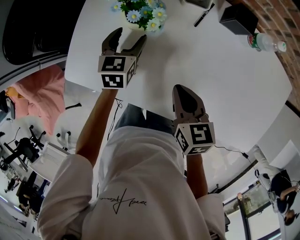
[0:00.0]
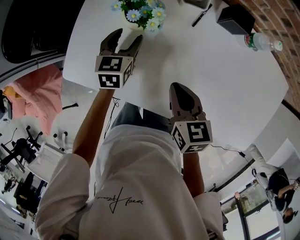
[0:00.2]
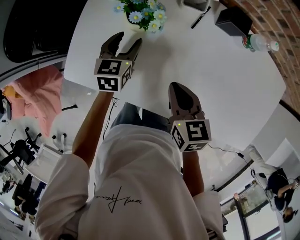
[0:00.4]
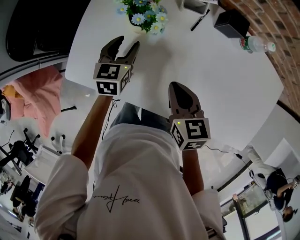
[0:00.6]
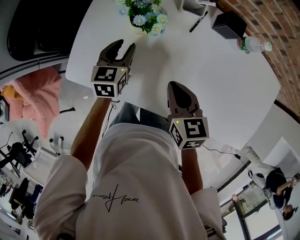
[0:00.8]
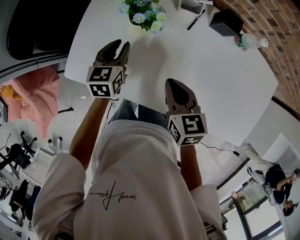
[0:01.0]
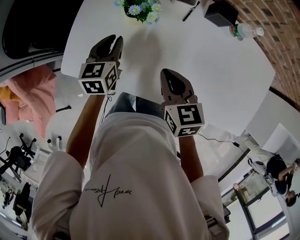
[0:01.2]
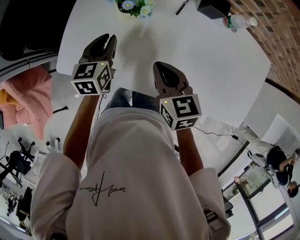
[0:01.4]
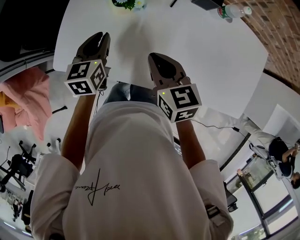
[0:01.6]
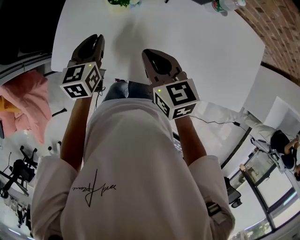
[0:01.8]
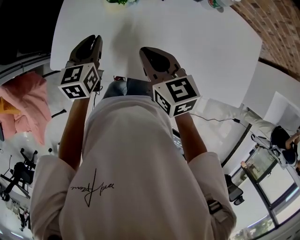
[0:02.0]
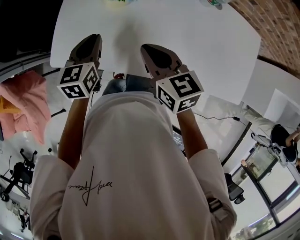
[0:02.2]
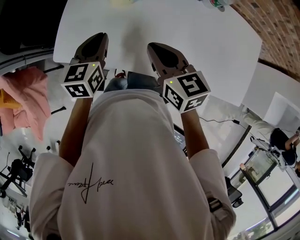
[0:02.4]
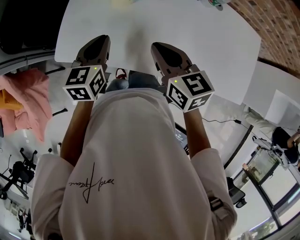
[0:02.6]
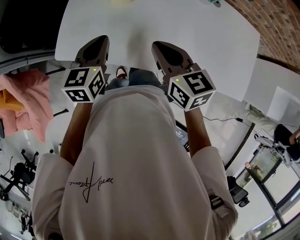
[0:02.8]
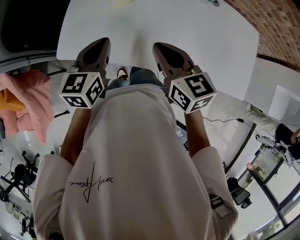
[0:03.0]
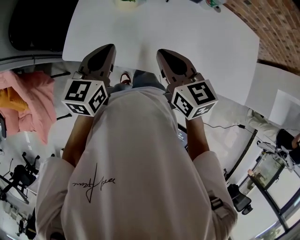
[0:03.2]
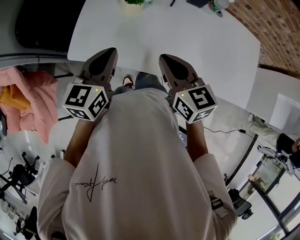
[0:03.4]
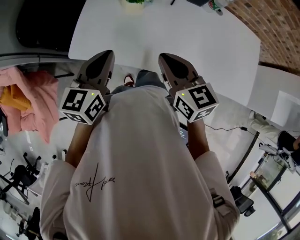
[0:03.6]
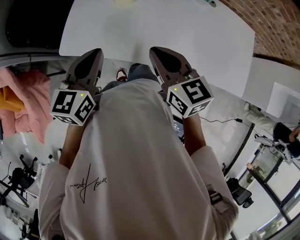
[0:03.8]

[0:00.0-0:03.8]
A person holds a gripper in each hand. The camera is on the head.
0:00.0 to 0:01.2: The left gripper shifts approximately 5 cm upward, and closes. The right gripper moves approximately 5 cm.
0:01.2 to 0:02.6: The right gripper heads upward and backward, covering about 10 cm. The left gripper is displaced backward and upward by about 15 cm.
0:02.6 to 0:03.8: The right gripper moves backward, some 5 cm. The left gripper heads backward and upward, covering roughly 10 cm.

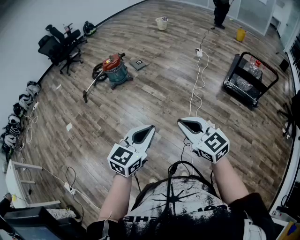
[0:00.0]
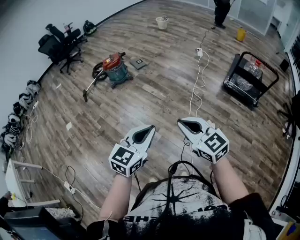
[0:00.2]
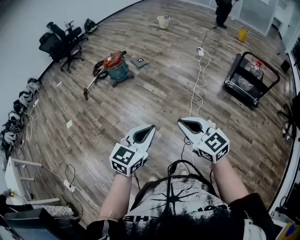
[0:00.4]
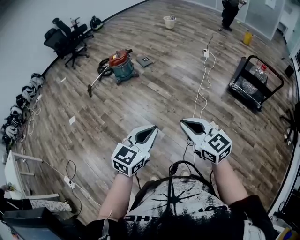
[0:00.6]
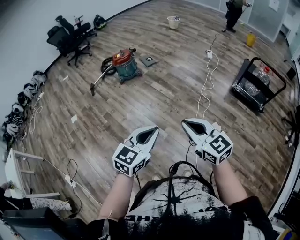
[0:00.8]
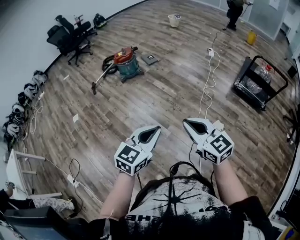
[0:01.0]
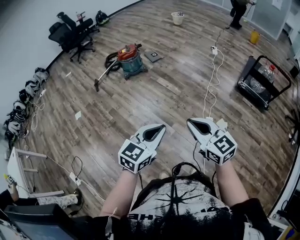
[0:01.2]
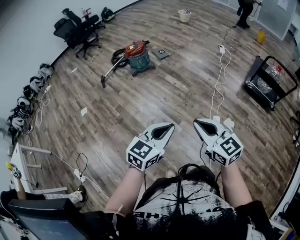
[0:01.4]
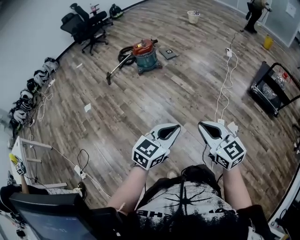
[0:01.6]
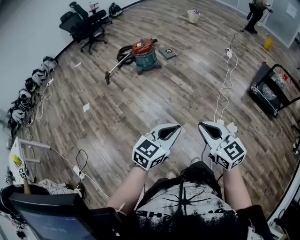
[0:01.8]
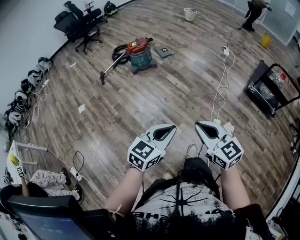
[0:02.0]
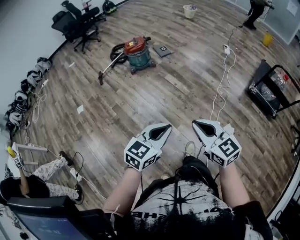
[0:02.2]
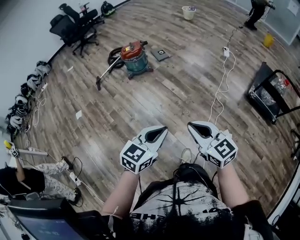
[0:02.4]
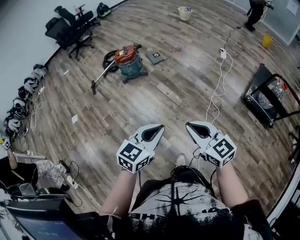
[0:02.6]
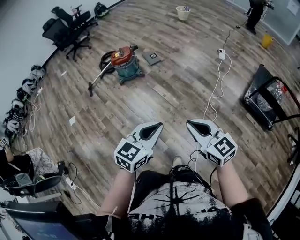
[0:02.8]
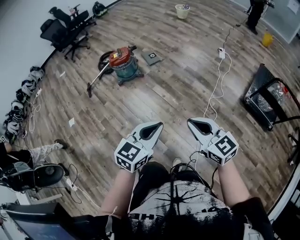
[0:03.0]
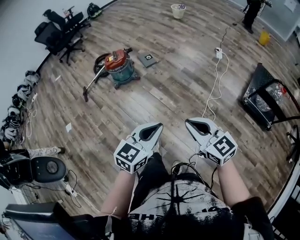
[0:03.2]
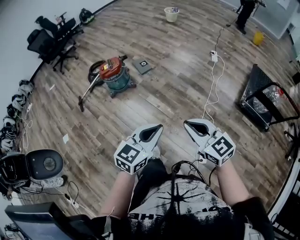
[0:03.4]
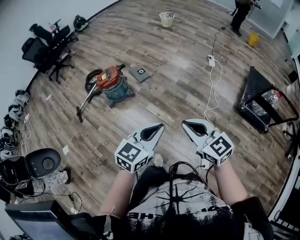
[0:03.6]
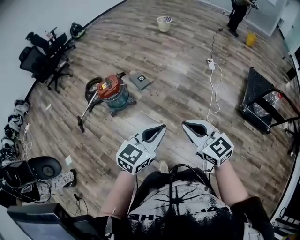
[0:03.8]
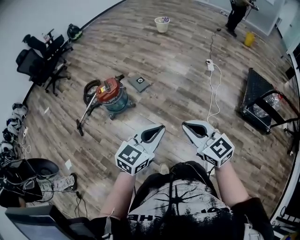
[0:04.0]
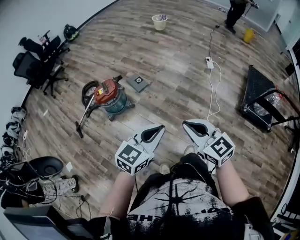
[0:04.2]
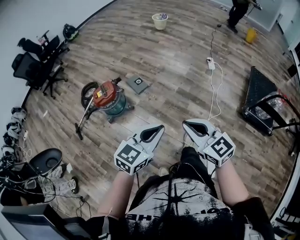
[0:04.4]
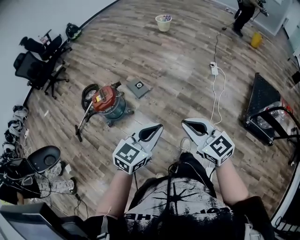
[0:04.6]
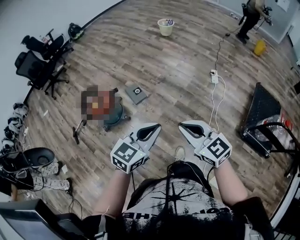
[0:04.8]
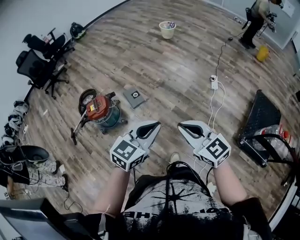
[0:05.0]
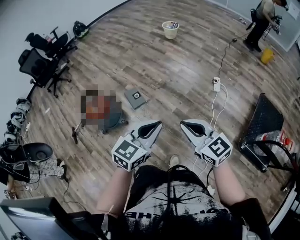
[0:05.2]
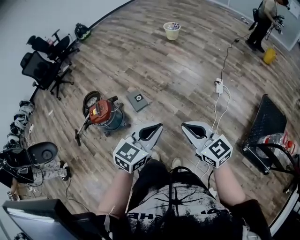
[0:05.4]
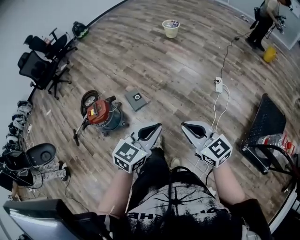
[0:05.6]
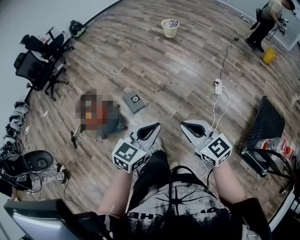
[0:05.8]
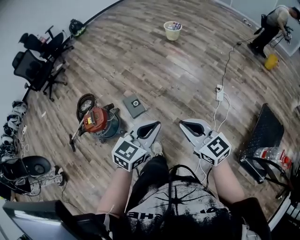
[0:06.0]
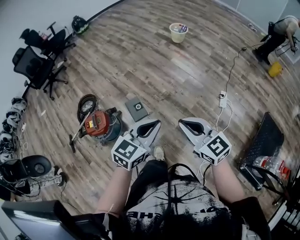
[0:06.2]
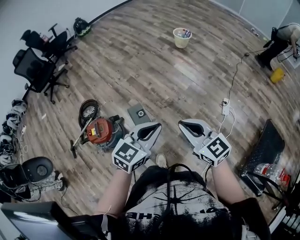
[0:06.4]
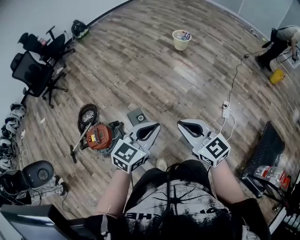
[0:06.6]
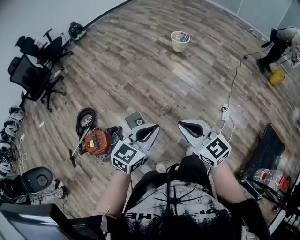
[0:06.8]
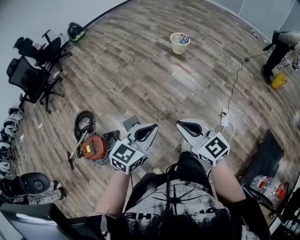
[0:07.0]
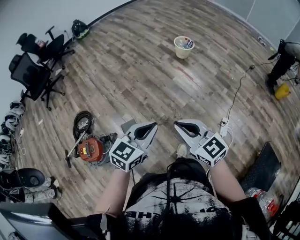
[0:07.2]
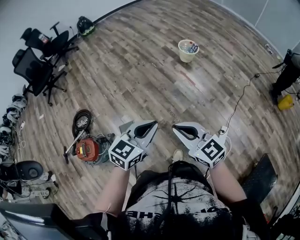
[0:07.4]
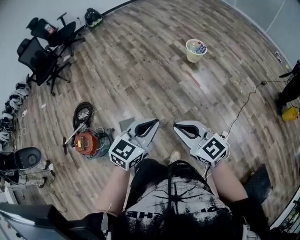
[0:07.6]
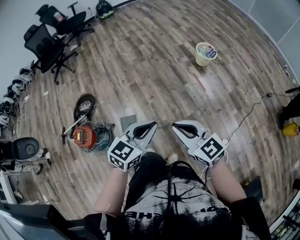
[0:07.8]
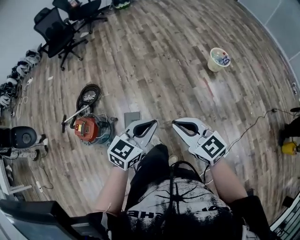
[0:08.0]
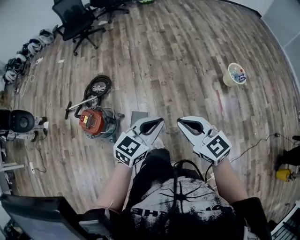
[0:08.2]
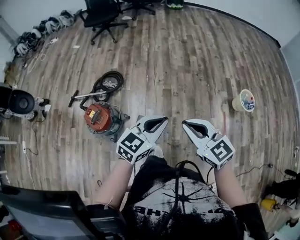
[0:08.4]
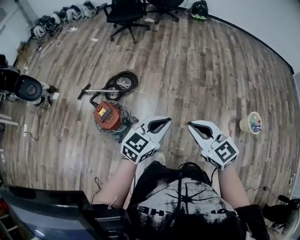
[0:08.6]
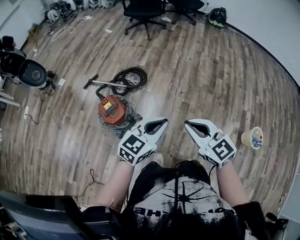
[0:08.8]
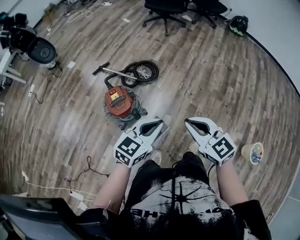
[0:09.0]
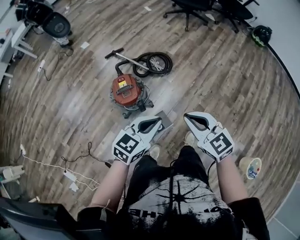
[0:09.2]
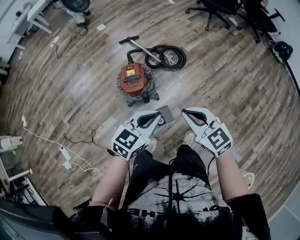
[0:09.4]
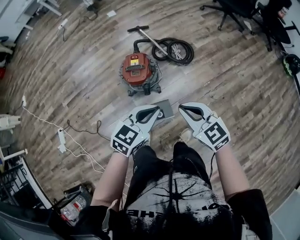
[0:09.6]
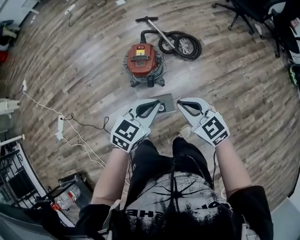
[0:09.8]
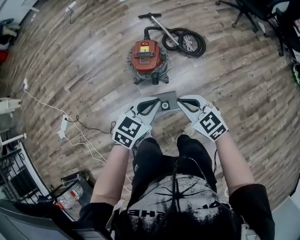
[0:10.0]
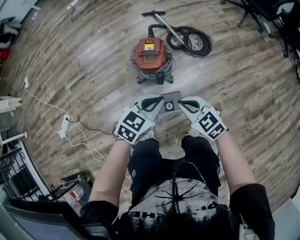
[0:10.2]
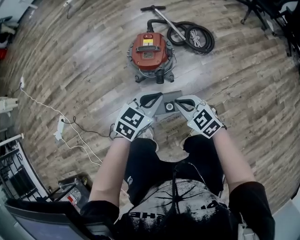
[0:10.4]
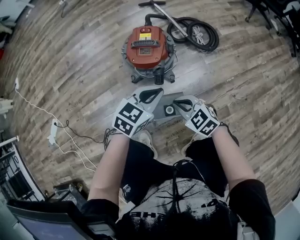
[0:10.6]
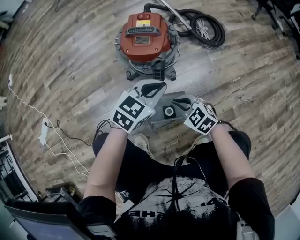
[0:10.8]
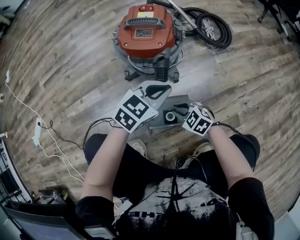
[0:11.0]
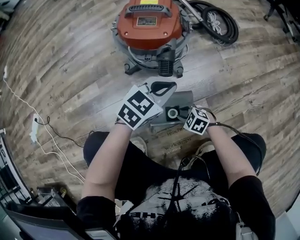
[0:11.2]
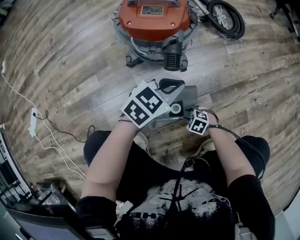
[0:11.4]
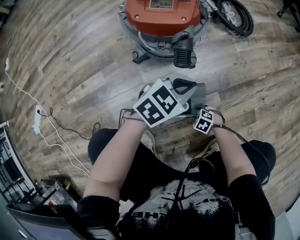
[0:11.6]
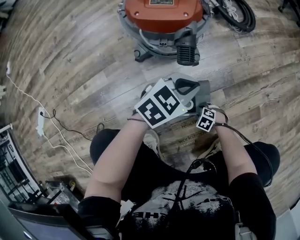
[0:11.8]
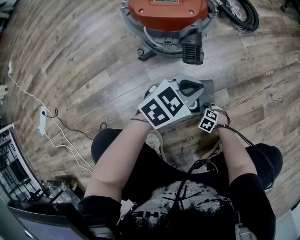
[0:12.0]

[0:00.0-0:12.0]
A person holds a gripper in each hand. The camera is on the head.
0:00.0 to 0:01.6: The grippers both shift to the left by some 15 cm.
0:01.6 to 0:03.0: Both grippers move forward and to the right, roughly 35 cm.
0:03.0 to 0:04.4: The grippers both shift forward by some 35 cm.
0:04.4 to 0:06.0: The pair of grippers is taken forward, some 40 cm.
0:06.0 to 0:07.6: Both grippers are carried forward, about 50 cm.
0:07.6 to 0:09.0: Both grippers are carried roughly 40 cm. The right gripper swivels approximately 60 degrees. Meanwhile the left gripper changes its angle by some 60 degrees.
0:09.0 to 0:10.4: The two grippers go about 30 cm downward. The left gripper rotates roughly 40 degrees. Meanwhile the right gripper turns by about 50 degrees.
0:10.4 to 0:12.0: The right gripper travels downward by approximately 70 cm, points its fingers approximately 40 degrees further downward, and opens its fingers. The left gripper heads downward, covering approximately 40 cm.

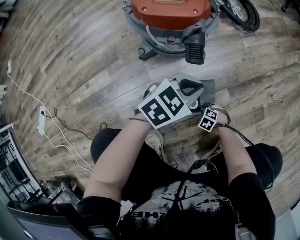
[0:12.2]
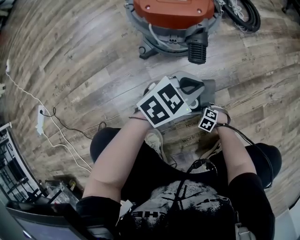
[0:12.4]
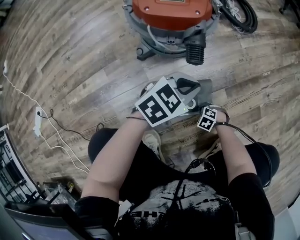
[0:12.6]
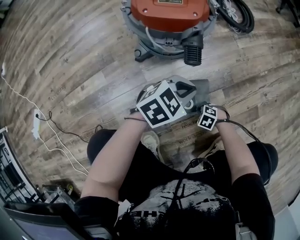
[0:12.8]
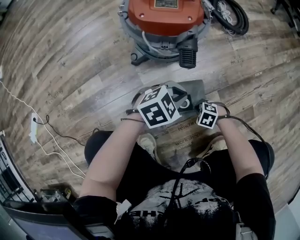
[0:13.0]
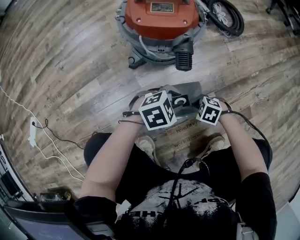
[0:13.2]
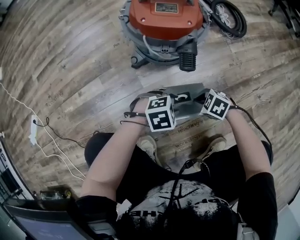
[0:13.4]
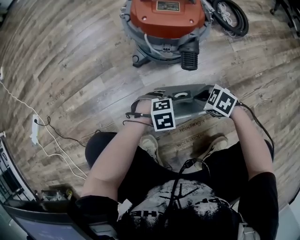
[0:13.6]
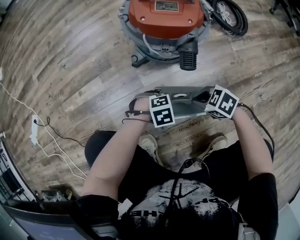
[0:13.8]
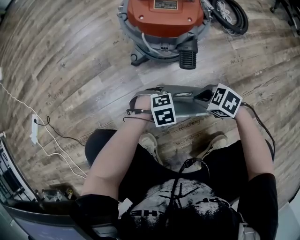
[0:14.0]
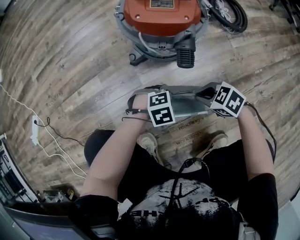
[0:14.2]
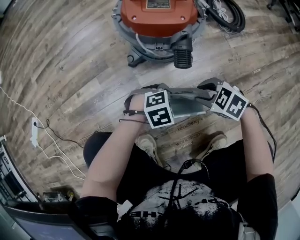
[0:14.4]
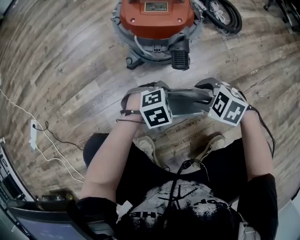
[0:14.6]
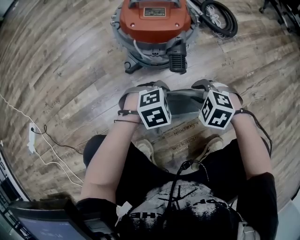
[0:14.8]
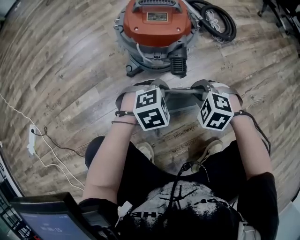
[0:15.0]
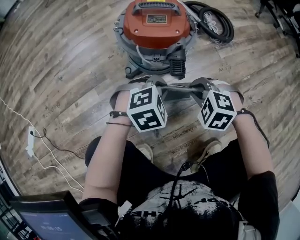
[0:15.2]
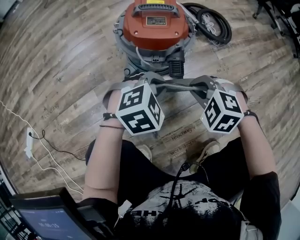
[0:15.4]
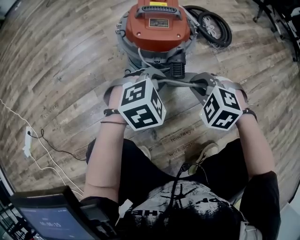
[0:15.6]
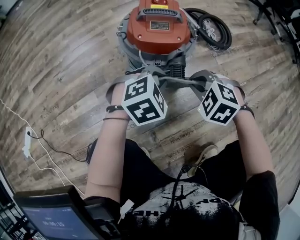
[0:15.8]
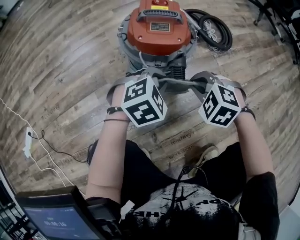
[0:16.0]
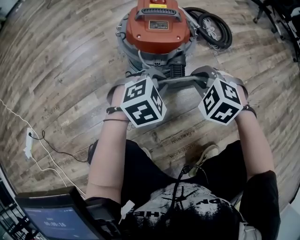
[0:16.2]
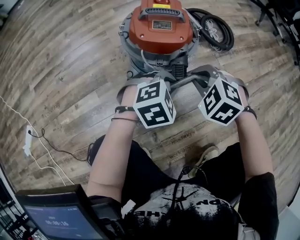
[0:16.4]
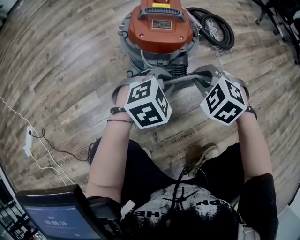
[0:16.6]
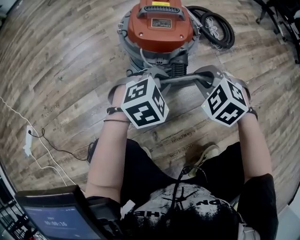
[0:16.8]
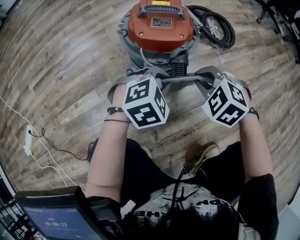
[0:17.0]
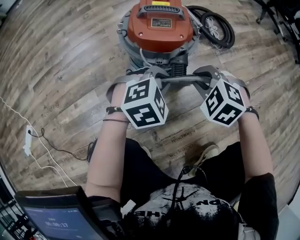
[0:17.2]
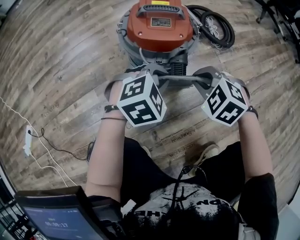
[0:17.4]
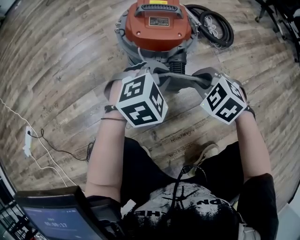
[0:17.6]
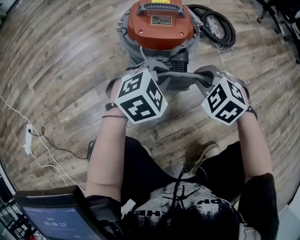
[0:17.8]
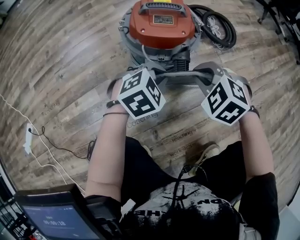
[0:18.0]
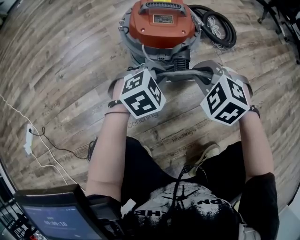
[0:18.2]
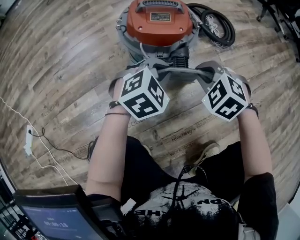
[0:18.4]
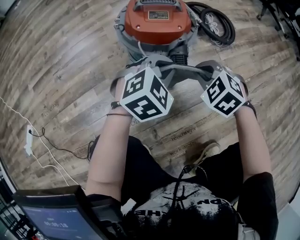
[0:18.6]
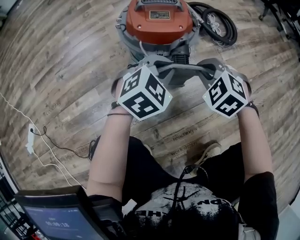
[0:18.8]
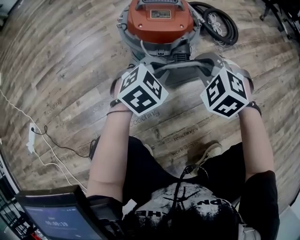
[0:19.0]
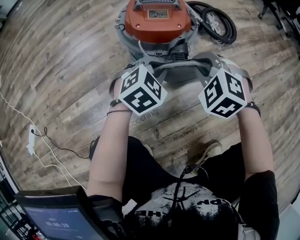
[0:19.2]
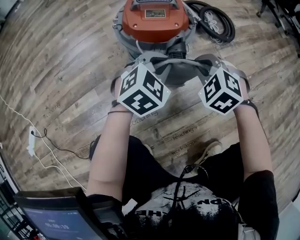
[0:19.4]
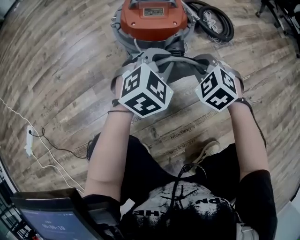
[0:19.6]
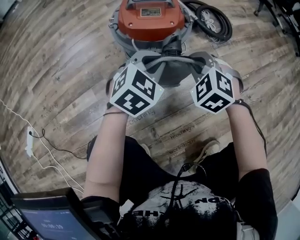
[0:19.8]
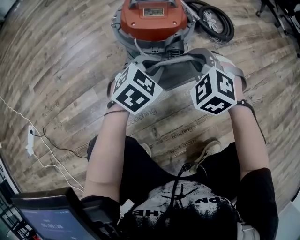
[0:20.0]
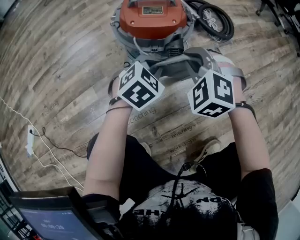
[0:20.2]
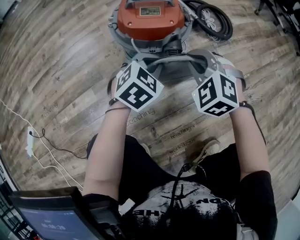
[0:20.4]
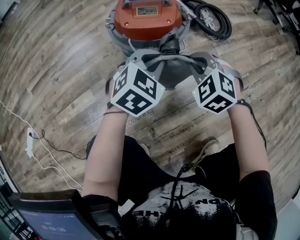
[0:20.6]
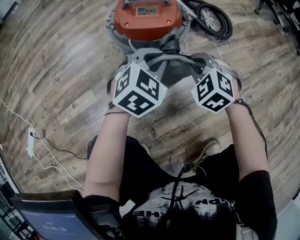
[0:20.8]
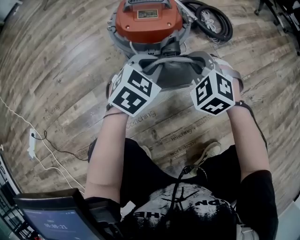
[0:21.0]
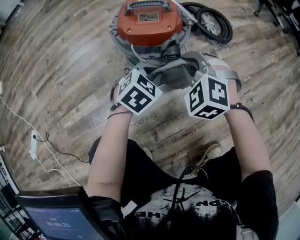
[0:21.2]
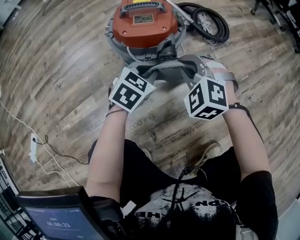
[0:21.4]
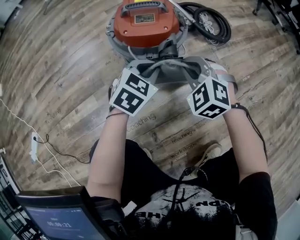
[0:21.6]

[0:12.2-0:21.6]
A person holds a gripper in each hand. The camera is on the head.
0:12.2 to 0:13.8: The right gripper shifts about 20 cm upward, rotates some 30 degrees, and closes its fingers; the left gripper is displaced downward by some 15 cm, tips its fingers downward by some 30 degrees, and opens.
0:13.8 to 0:15.4: Both grippers move upward, about 15 cm. The right gripper turns by approximately 40 degrees, and opens and closes again. Meanwhile the left gripper turns by about 20 degrees, and closes up.
0:15.4 to 0:17.0: The right gripper ends up about 5 cm from where it was.
0:17.0 to 0:18.4: The grippers move only a little.
0:18.4 to 0:21.6: There are only small adjustments of the grippers.
